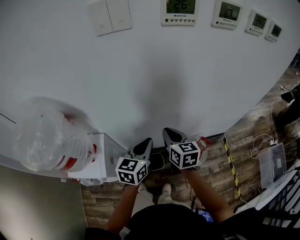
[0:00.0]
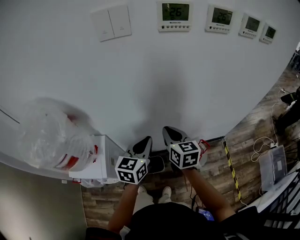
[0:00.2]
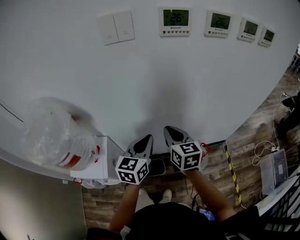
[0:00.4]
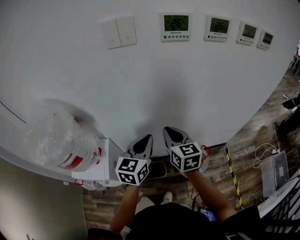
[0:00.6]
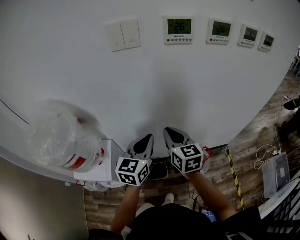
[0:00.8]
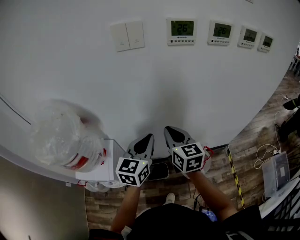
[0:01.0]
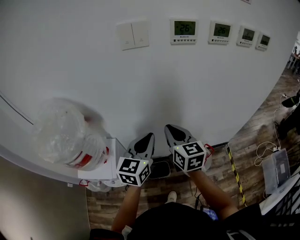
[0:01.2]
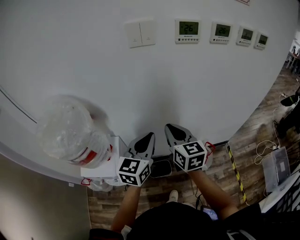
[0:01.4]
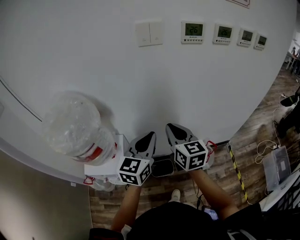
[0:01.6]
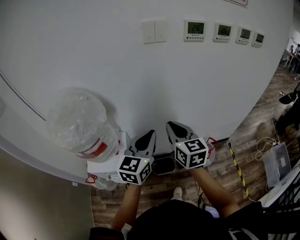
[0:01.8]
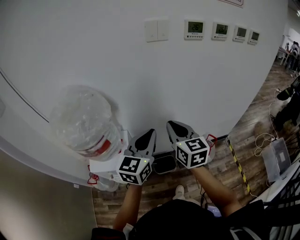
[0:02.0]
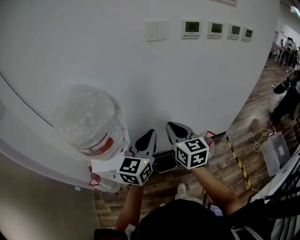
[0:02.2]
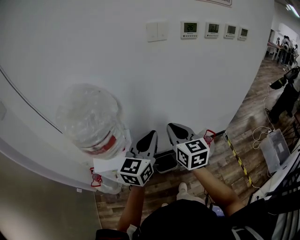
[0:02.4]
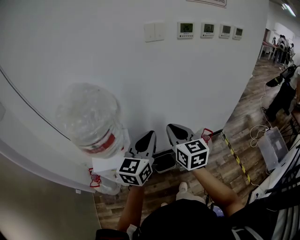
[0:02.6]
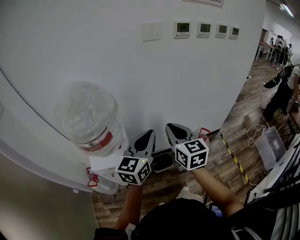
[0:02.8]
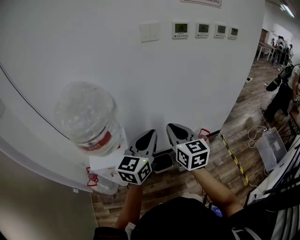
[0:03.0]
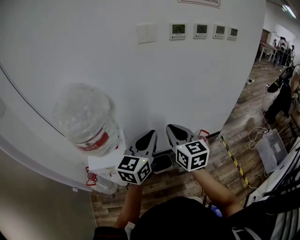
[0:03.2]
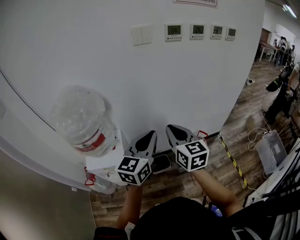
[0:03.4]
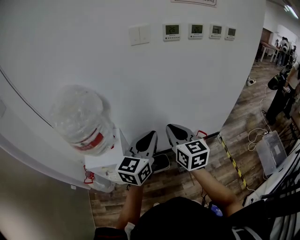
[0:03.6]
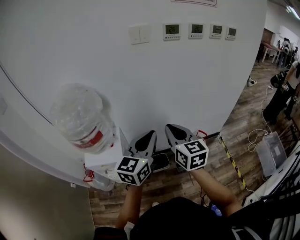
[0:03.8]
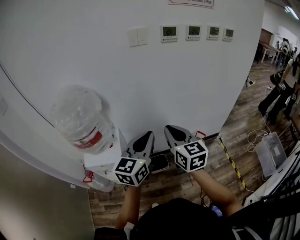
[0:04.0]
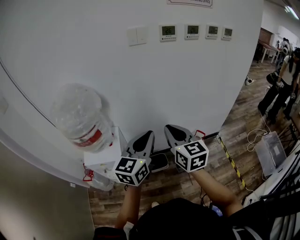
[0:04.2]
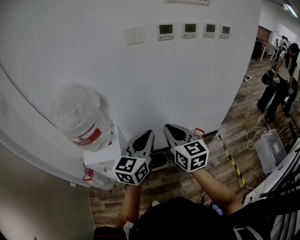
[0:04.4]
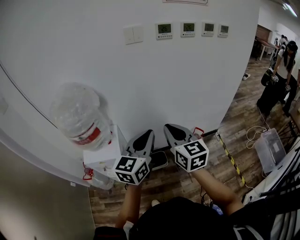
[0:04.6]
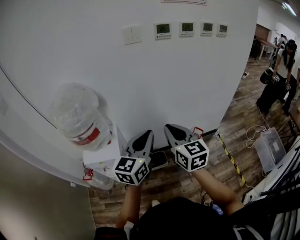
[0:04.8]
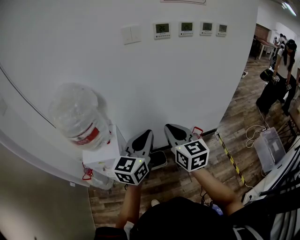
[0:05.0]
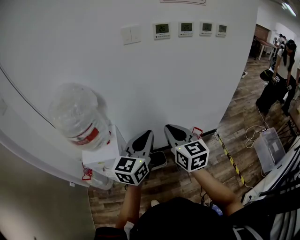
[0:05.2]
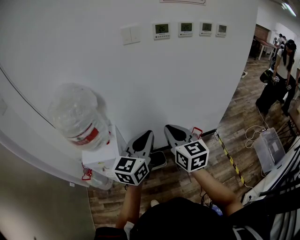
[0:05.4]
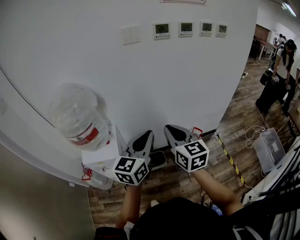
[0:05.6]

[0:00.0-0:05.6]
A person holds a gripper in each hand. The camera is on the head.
0:00.0 to 0:01.4: The right gripper is displaced upward and backward by approximately 15 cm; the left gripper heads upward, covering approximately 15 cm.
0:01.4 to 0:02.8: The right gripper shifts roughly 15 cm backward; the left gripper shifts roughly 15 cm backward and to the left.
0:02.8 to 0:04.2: The grippers both shift to the right by approximately 10 cm.
0:04.2 to 0:05.6: The grippers stay close to where they were, moving slightly.

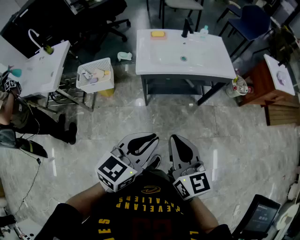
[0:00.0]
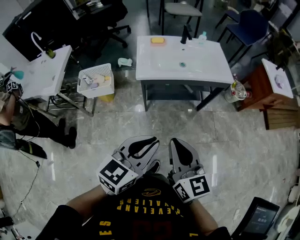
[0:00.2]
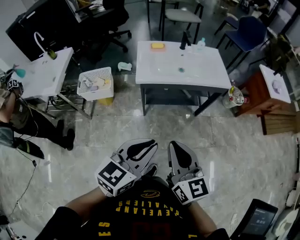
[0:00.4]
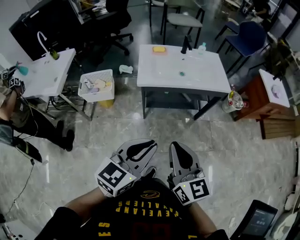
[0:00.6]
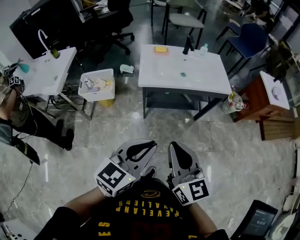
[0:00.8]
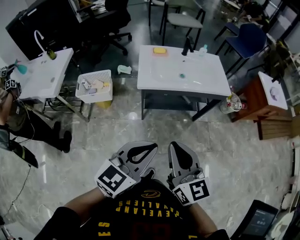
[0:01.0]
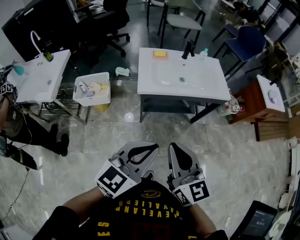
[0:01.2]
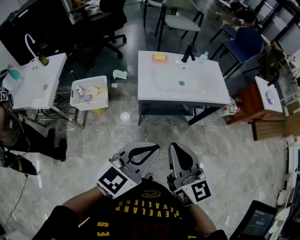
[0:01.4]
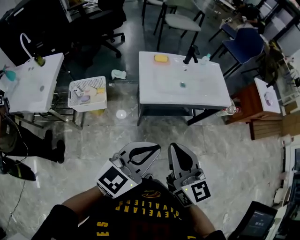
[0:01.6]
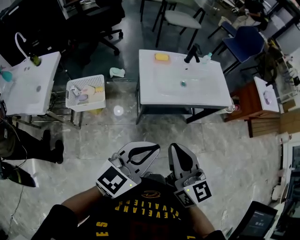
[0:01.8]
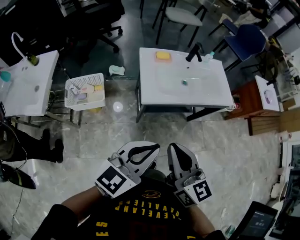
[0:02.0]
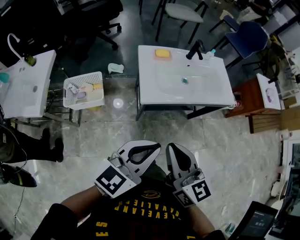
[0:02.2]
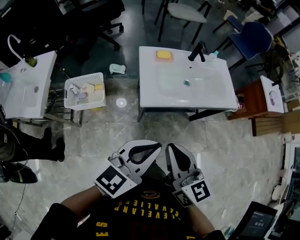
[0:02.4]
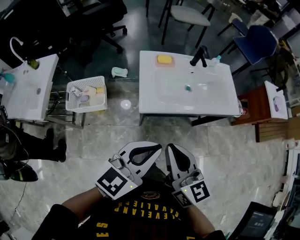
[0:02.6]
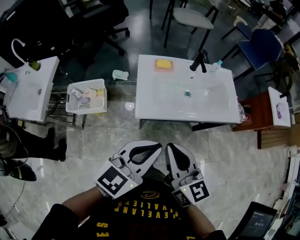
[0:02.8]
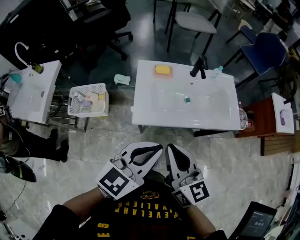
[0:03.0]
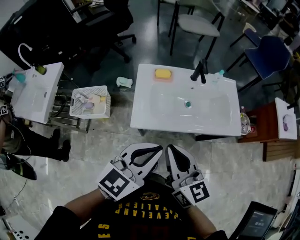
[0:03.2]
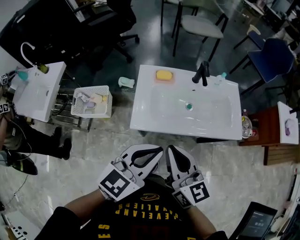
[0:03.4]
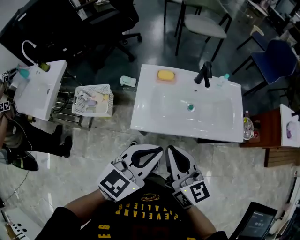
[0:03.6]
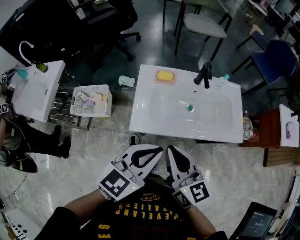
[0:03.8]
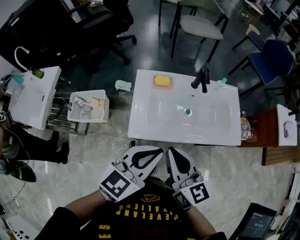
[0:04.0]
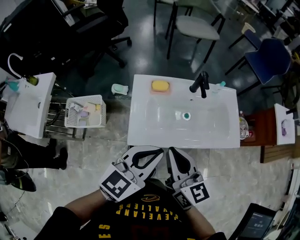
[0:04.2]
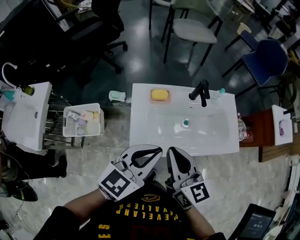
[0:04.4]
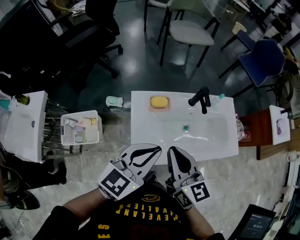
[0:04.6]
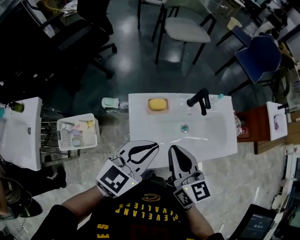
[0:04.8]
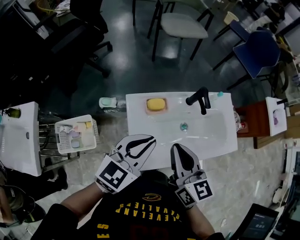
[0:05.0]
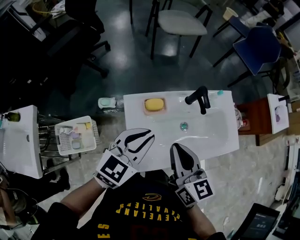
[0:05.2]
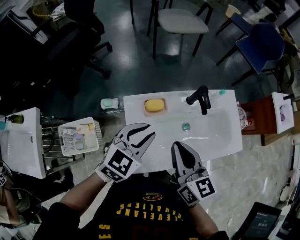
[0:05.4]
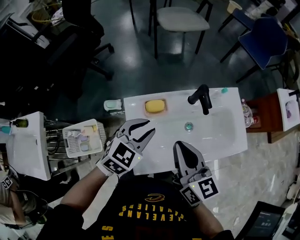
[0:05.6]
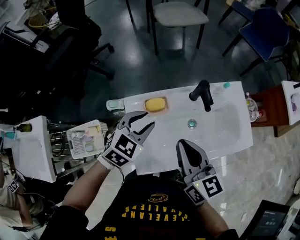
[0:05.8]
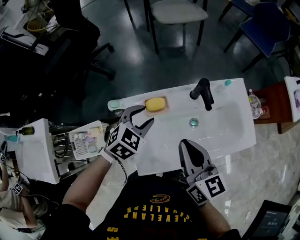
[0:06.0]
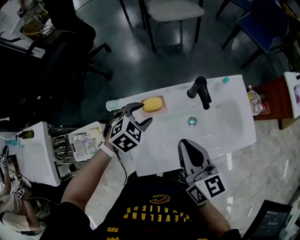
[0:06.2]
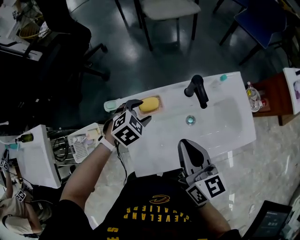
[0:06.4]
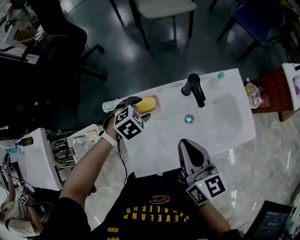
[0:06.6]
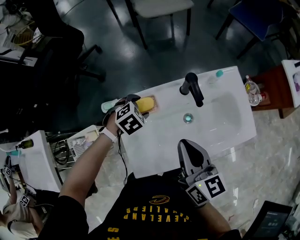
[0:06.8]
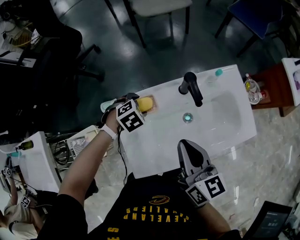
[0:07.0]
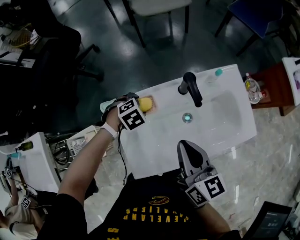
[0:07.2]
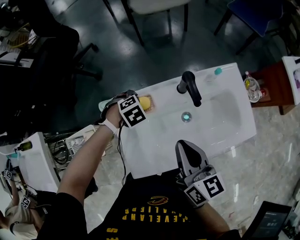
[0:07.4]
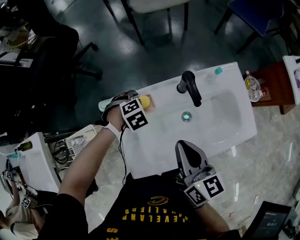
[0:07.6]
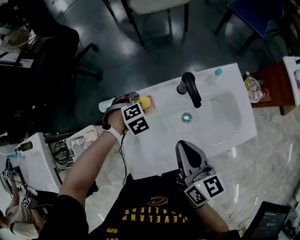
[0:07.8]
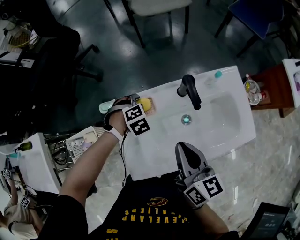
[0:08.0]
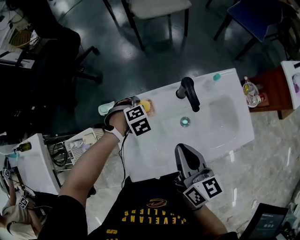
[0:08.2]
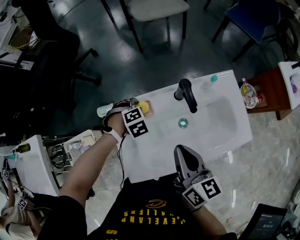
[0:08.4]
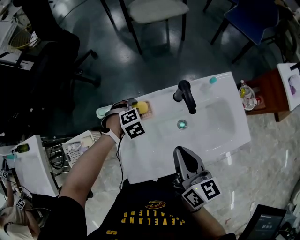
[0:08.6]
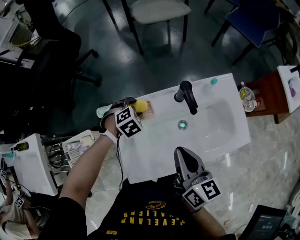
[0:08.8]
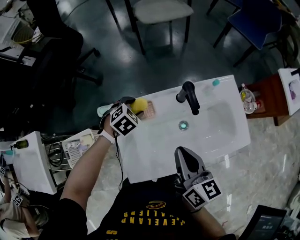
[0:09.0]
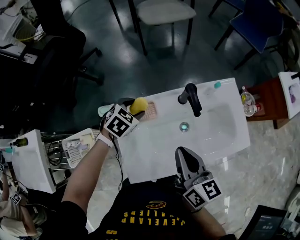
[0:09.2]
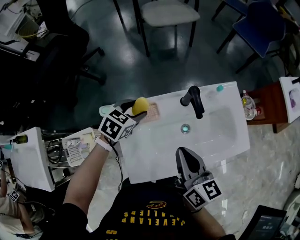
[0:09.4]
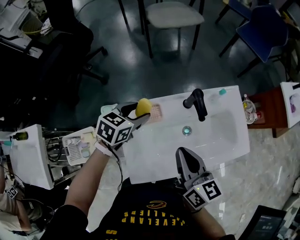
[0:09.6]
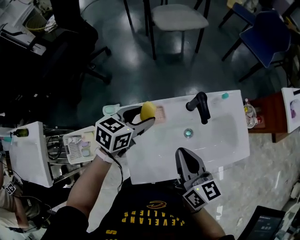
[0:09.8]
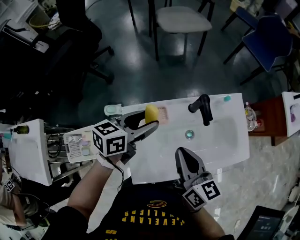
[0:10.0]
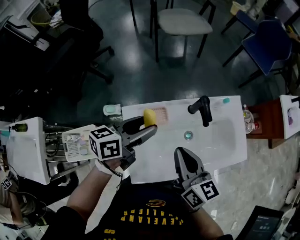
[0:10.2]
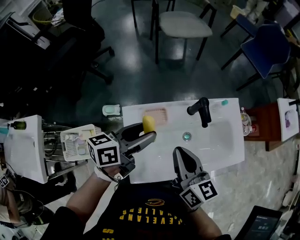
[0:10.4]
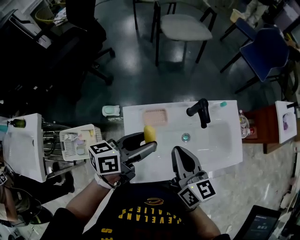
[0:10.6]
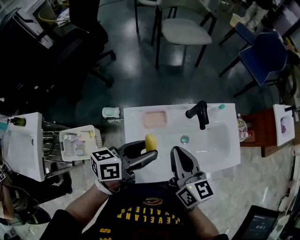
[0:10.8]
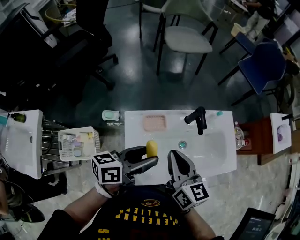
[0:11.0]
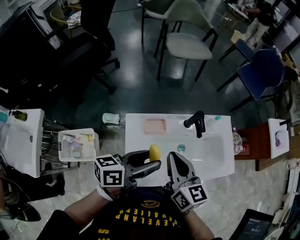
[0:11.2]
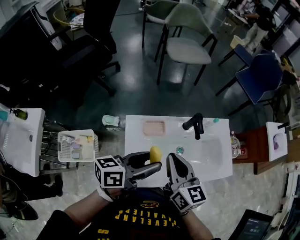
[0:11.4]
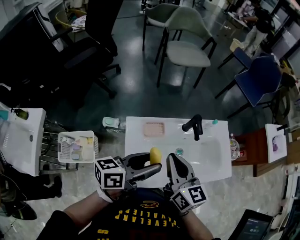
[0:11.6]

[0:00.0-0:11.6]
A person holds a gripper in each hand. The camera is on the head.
0:00.0 to 0:01.4: The left gripper goes roughly 5 cm to the left, while the right gripper travels to the left and forward by about 10 cm.
0:01.4 to 0:02.8: Both grippers travel together forward, about 20 cm.
0:02.8 to 0:04.4: The two grippers go approximately 20 cm forward.
0:04.4 to 0:05.8: The right gripper travels forward by about 10 cm. The left gripper shifts about 25 cm forward and downward, rotates about 30 degrees, and opens its fingers.
0:05.8 to 0:07.2: The left gripper heads downward, covering approximately 15 cm, points its fingers some 40 degrees further downward, and opens its fingers, while the right gripper moves about 5 cm.
0:07.2 to 0:08.8: The grippers move only a little.
0:08.8 to 0:10.2: The right gripper travels to the left by some 5 cm; the left gripper moves upward, roughly 20 cm, and tips its fingers upward by approximately 60 degrees.
0:10.2 to 0:11.6: The left gripper goes about 15 cm backward and upward, while the right gripper shifts by approximately 5 cm.

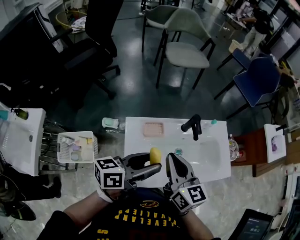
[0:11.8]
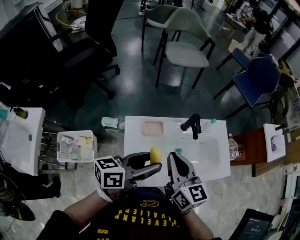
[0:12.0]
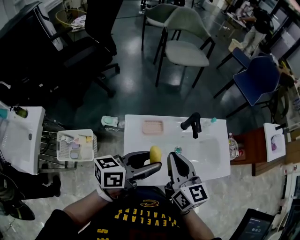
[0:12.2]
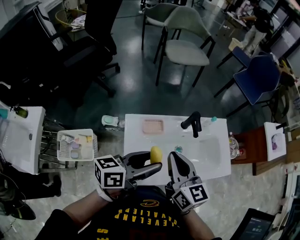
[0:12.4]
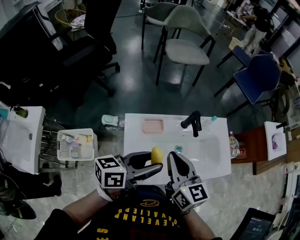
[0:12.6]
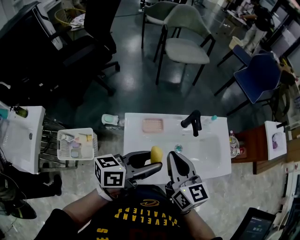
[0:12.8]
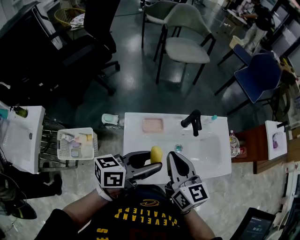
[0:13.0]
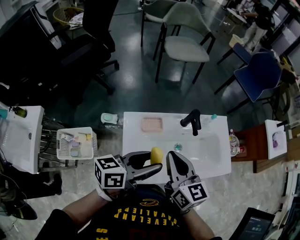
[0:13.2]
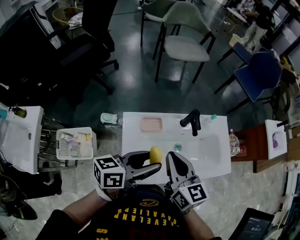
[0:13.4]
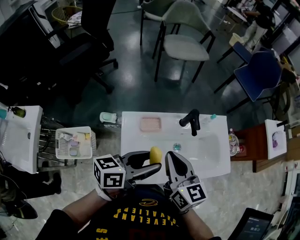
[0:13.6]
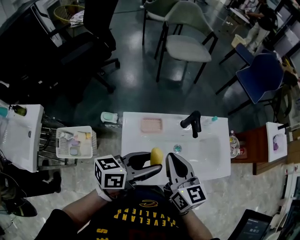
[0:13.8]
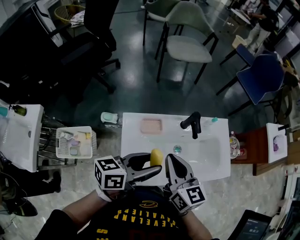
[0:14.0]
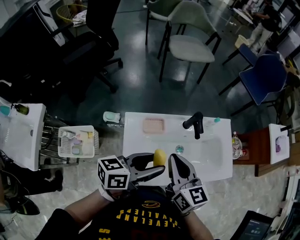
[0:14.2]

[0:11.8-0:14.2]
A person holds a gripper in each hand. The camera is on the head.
0:11.8 to 0:13.0: Neither gripper changes place.
0:13.0 to 0:14.2: The grippers move only a little.

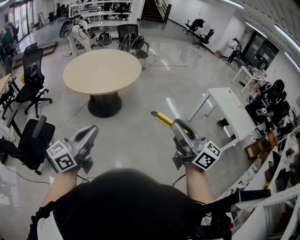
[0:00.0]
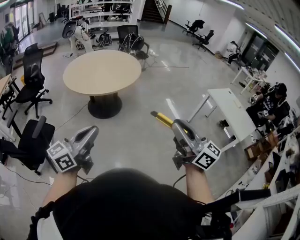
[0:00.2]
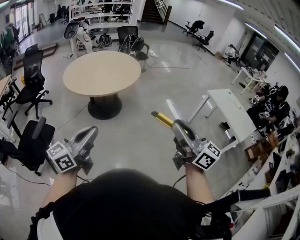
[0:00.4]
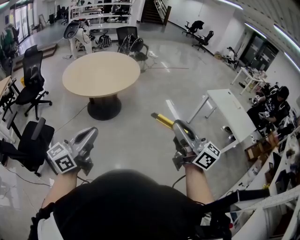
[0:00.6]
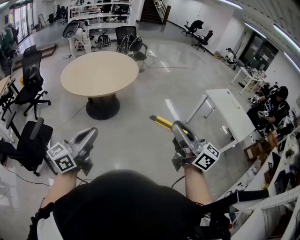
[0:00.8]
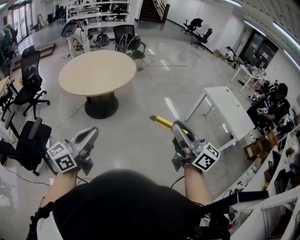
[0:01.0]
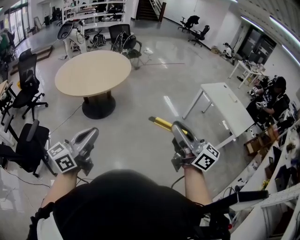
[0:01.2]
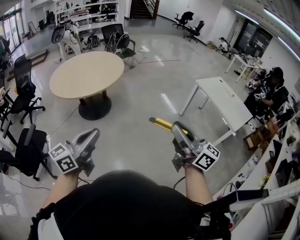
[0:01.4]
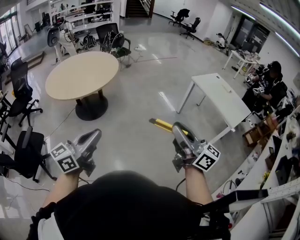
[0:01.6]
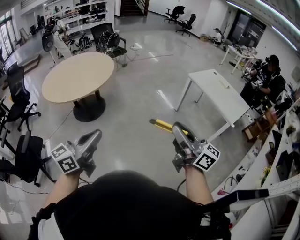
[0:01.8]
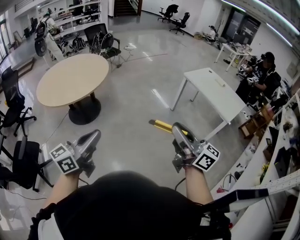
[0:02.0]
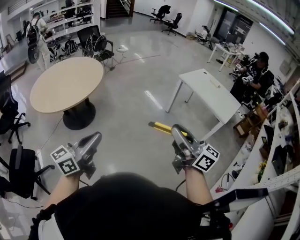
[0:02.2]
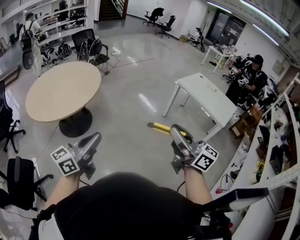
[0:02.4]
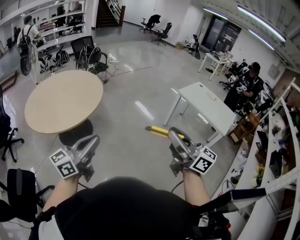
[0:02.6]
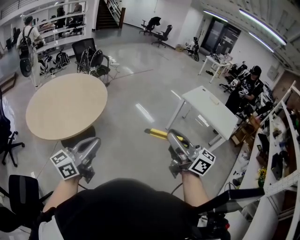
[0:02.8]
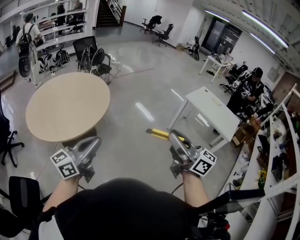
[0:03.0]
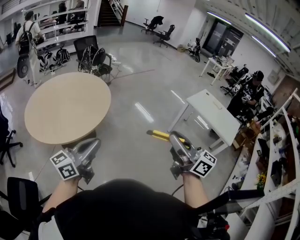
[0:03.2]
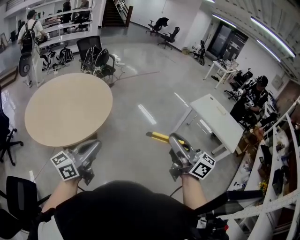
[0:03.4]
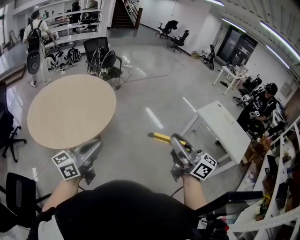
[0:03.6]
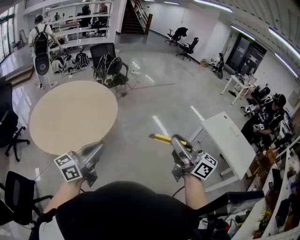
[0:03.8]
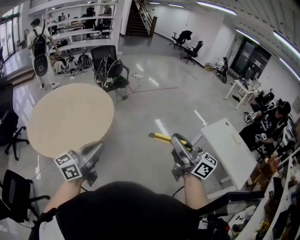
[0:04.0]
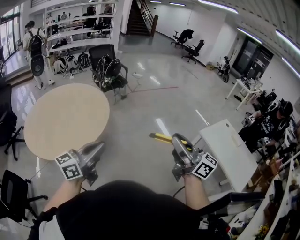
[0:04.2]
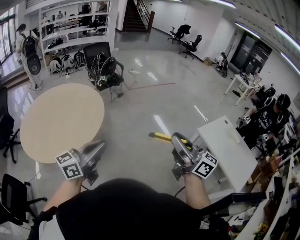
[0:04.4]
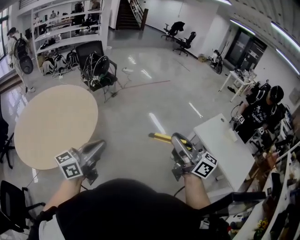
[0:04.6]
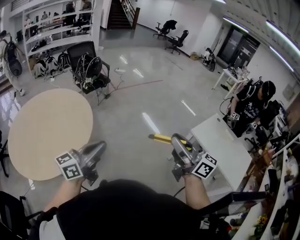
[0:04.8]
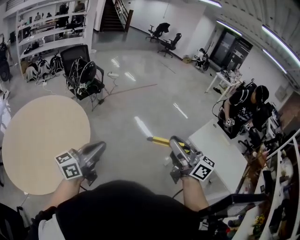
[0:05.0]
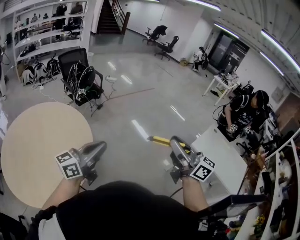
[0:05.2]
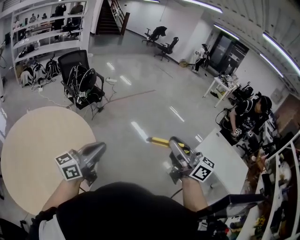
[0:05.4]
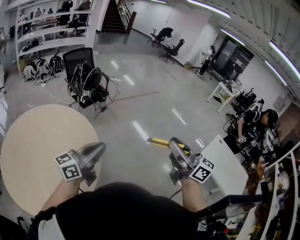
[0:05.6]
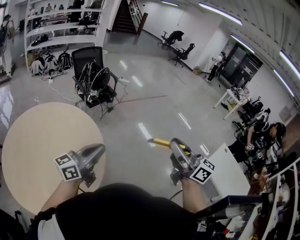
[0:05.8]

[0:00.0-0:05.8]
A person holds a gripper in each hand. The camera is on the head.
0:00.0 to 0:01.4: The grippers both shift to the right by approximately 15 cm.
0:01.4 to 0:02.8: Both grippers move forward and to the left, some 25 cm.
0:02.8 to 0:04.4: Both grippers move forward and to the right, approximately 40 cm.
0:04.4 to 0:05.8: Both grippers travel together forward and to the left, approximately 40 cm.
